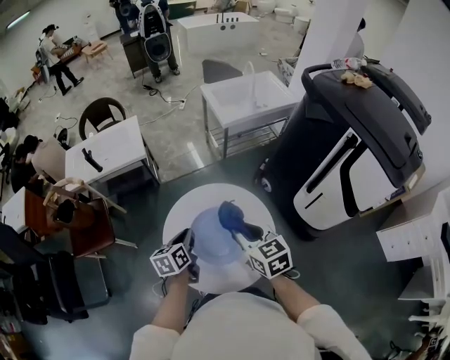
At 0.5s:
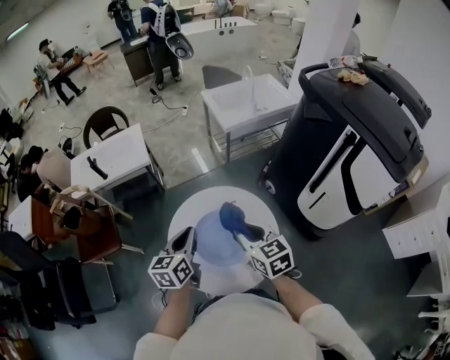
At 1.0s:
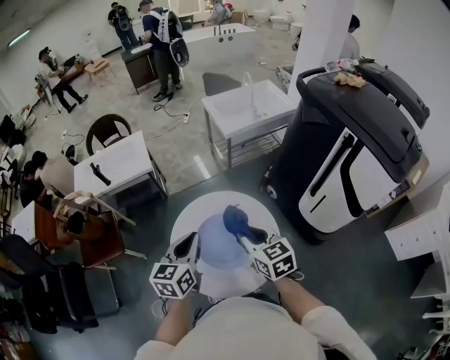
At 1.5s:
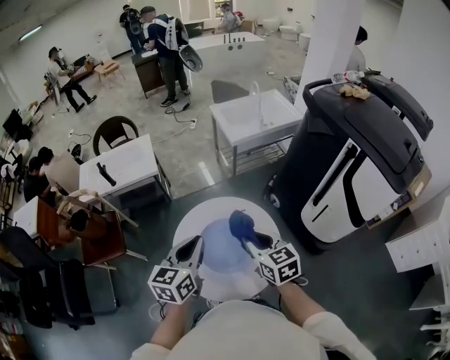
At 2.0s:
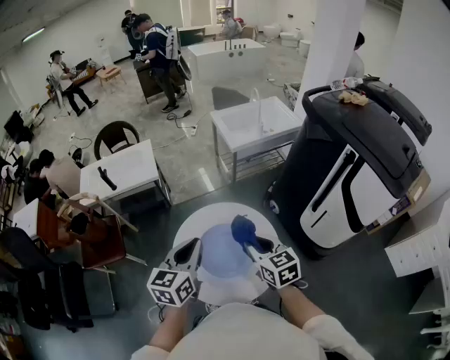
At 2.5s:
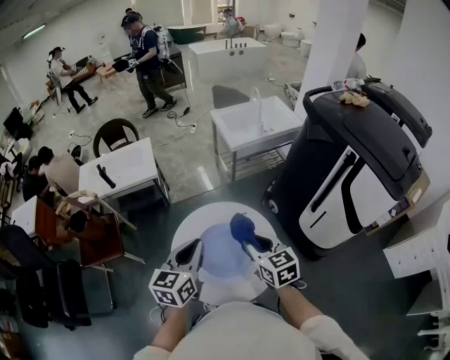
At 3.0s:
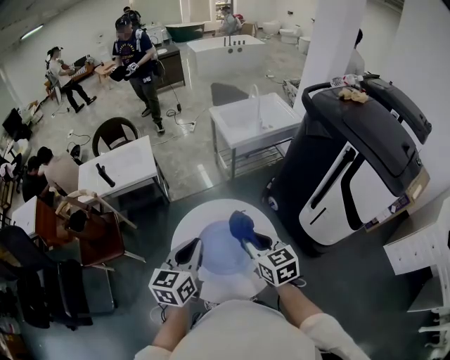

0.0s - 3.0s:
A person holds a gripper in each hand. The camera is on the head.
0.0s - 1.5s: The left gripper heads upward, covering roughly 15 cm, and turns by roughly 30 degrees.
1.5s - 3.0s: The grippers stay close to where they were, moving slightly.

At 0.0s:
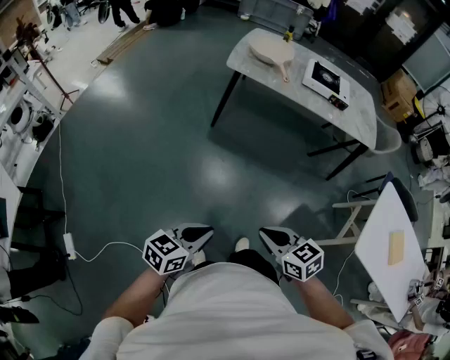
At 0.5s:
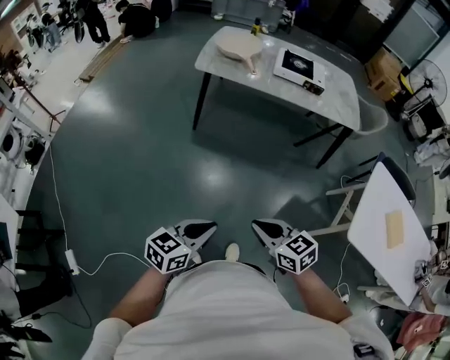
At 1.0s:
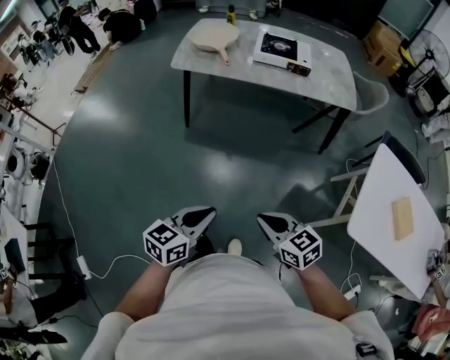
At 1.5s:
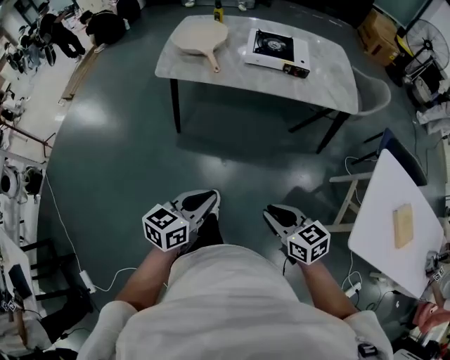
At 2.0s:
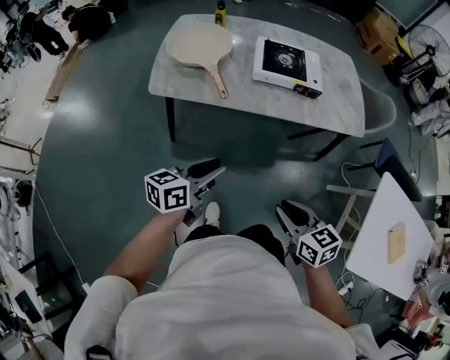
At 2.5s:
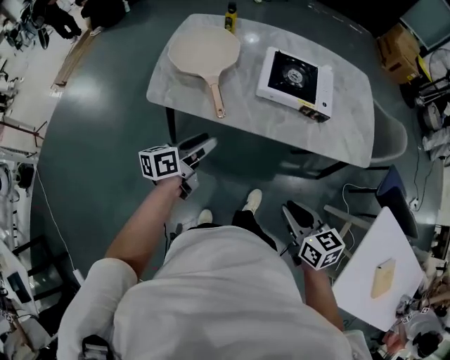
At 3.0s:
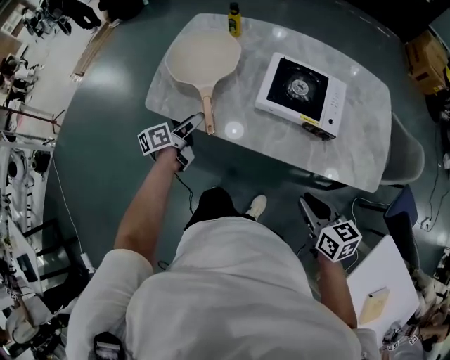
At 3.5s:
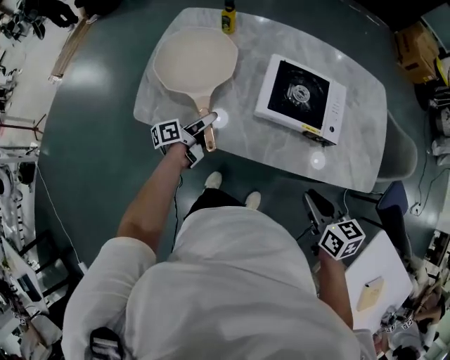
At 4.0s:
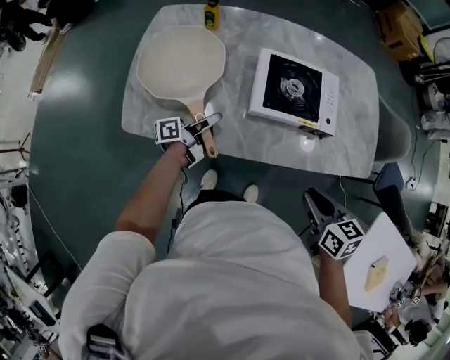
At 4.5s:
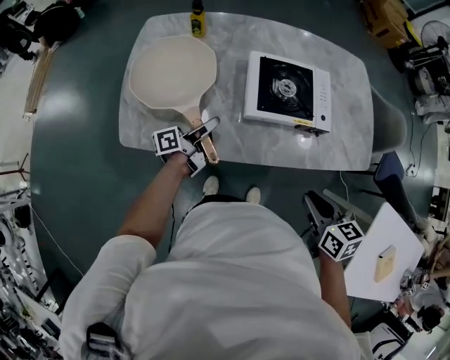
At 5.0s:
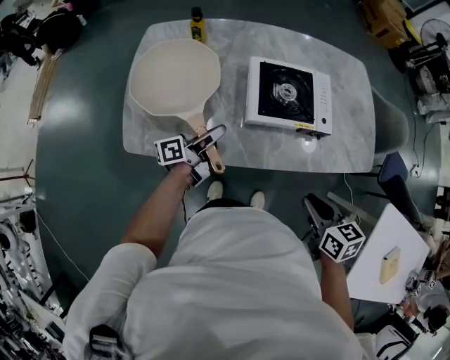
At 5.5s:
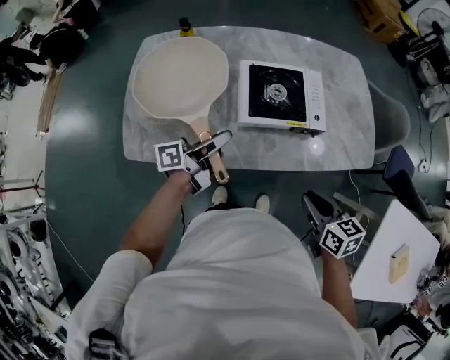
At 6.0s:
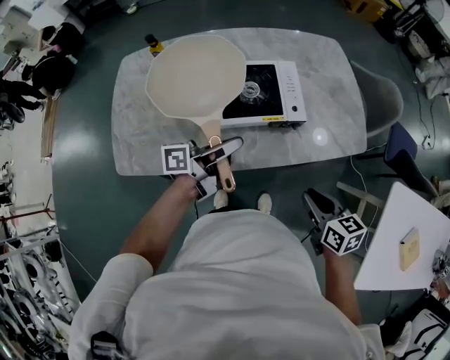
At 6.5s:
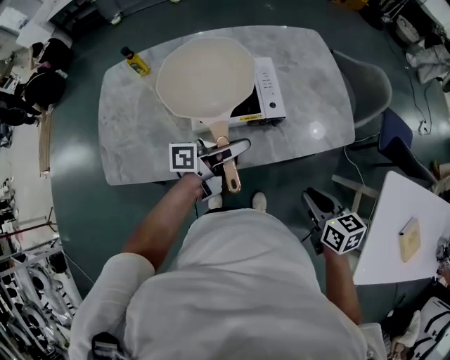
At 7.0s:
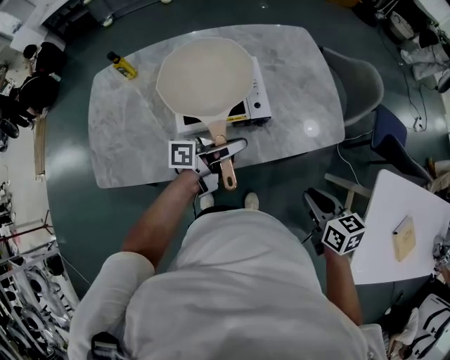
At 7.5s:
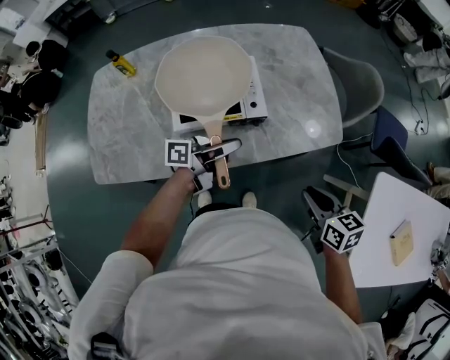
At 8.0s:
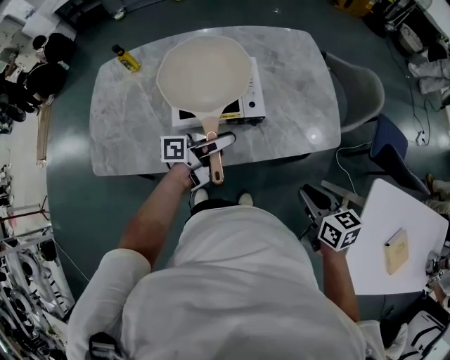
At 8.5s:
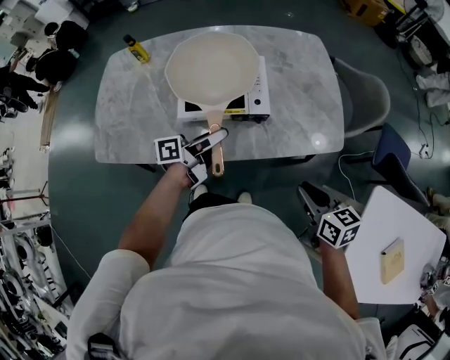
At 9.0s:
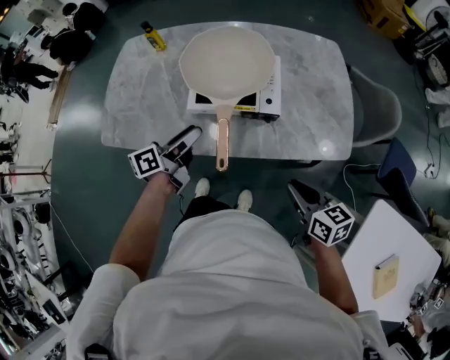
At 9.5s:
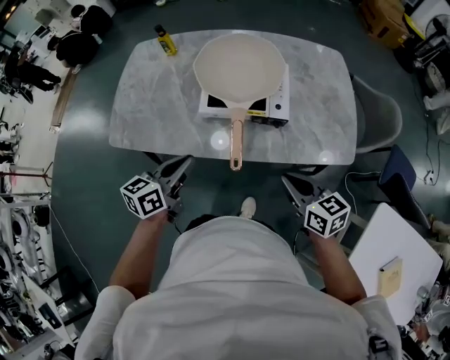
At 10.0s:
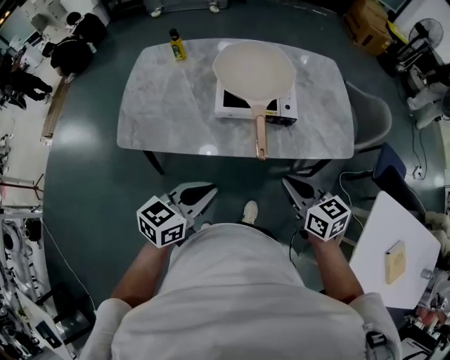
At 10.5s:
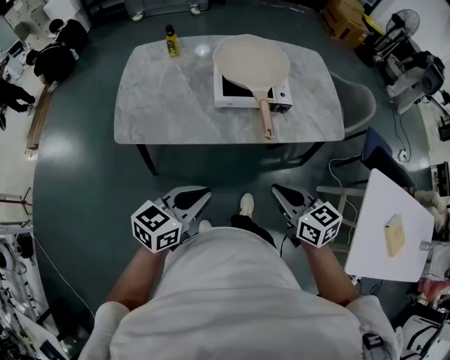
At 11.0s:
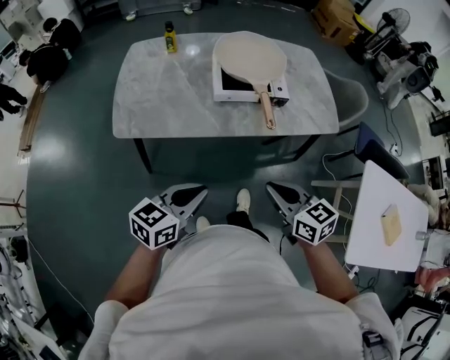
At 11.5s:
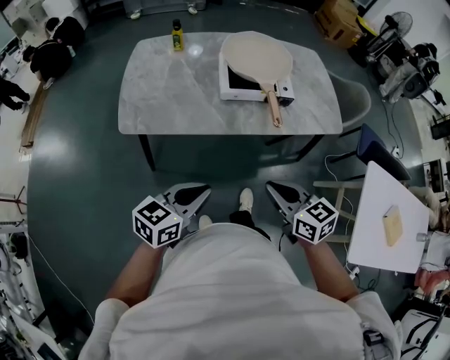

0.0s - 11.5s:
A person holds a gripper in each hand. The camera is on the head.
0.0s - 2.0s: The pair of grippers is taken forward, some 50 cm. The right gripper rotates about 30 degrees; the left gripper opens up.
2.0s - 4.0s: Both grippers travel together forward, roughly 35 cm. The left gripper turns by about 40 degrees, and opens, then closes again.
4.0s - 6.0s: The left gripper moves to the right and upward, about 25 cm, and swivels roughly 20 degrees. The right gripper shifts approximately 10 cm to the right.
6.0s - 7.5s: The two grippers go about 15 cm to the right.
7.5s - 9.5s: The right gripper ends up approximately 10 cm from where it was, and rotates some 30 degrees; the left gripper shifts by some 20 cm, turns by some 50 degrees, and opens, then closes once more.
9.5s - 11.5s: The right gripper heads backward and to the left, covering about 30 cm. The left gripper heads backward, covering roughly 25 cm, and changes its angle by roughly 20 degrees.

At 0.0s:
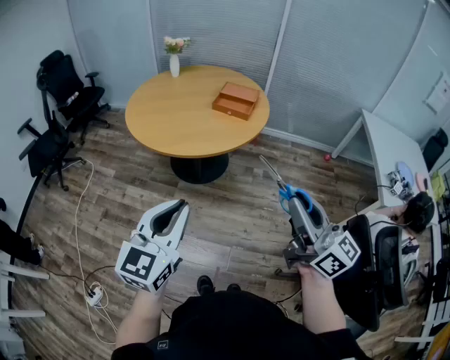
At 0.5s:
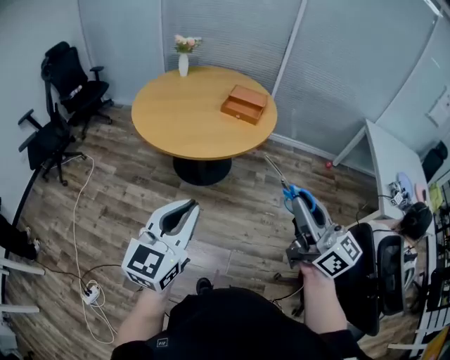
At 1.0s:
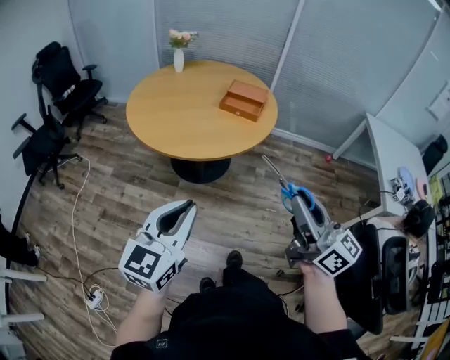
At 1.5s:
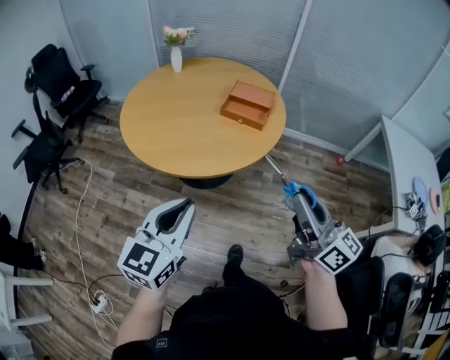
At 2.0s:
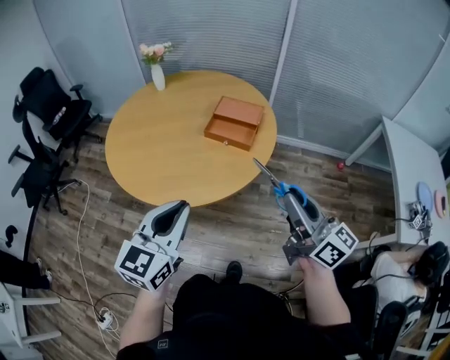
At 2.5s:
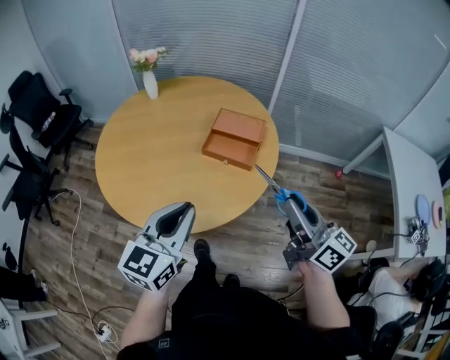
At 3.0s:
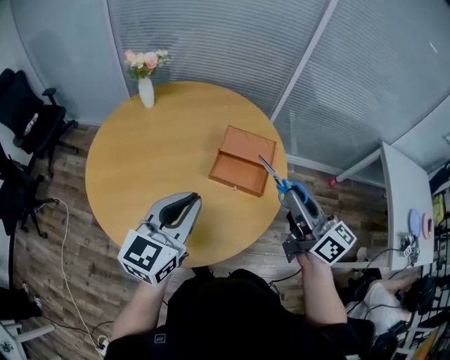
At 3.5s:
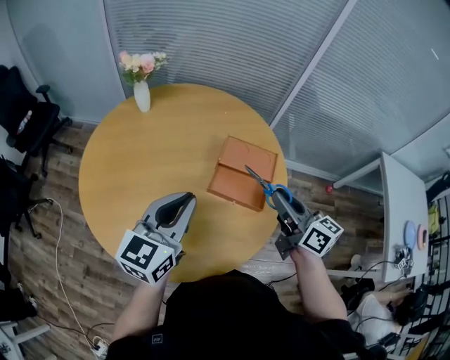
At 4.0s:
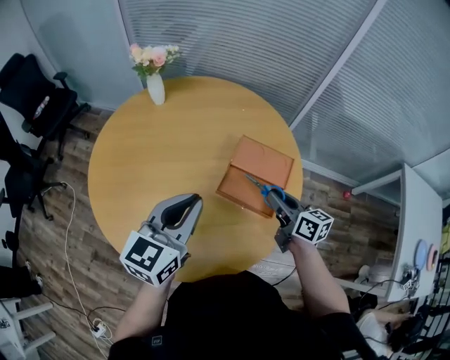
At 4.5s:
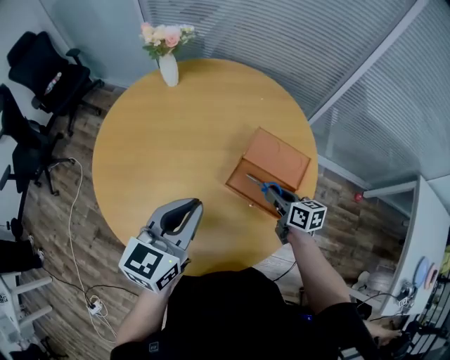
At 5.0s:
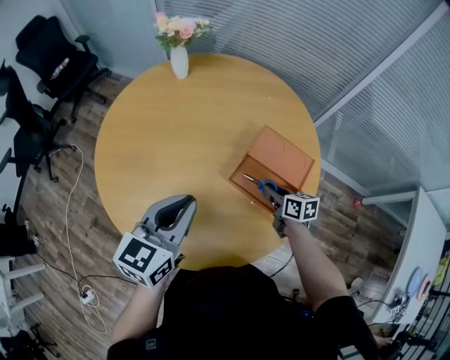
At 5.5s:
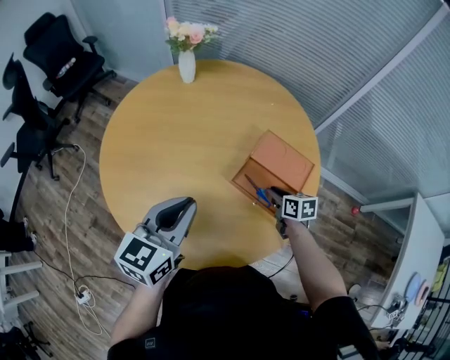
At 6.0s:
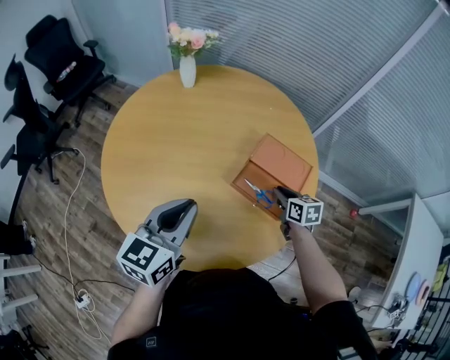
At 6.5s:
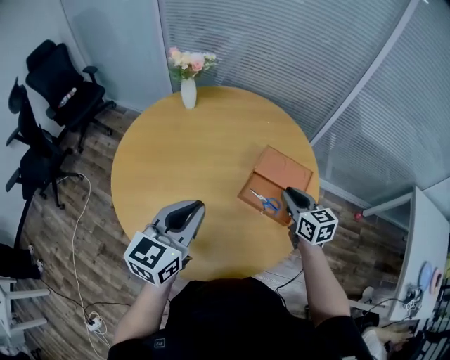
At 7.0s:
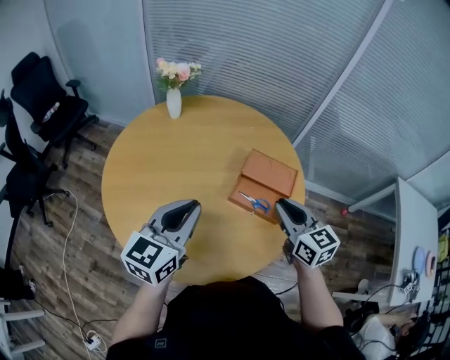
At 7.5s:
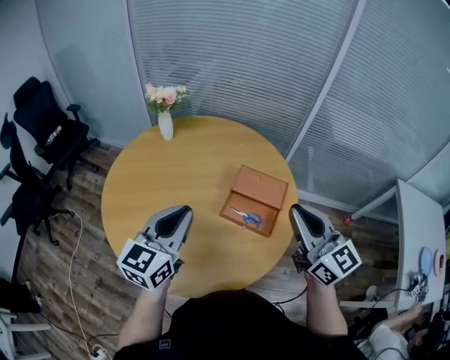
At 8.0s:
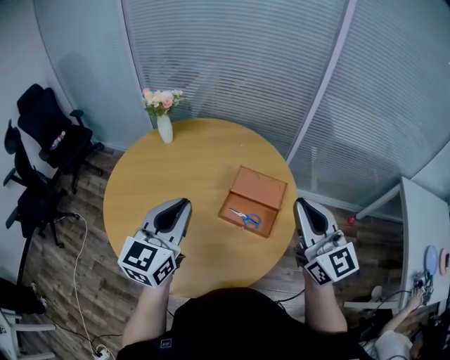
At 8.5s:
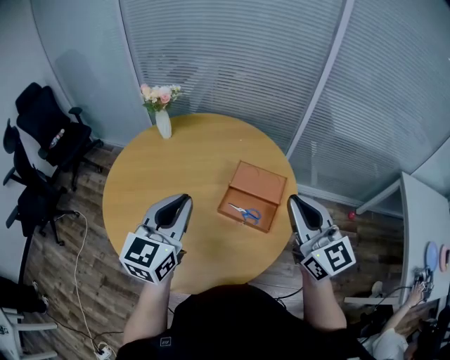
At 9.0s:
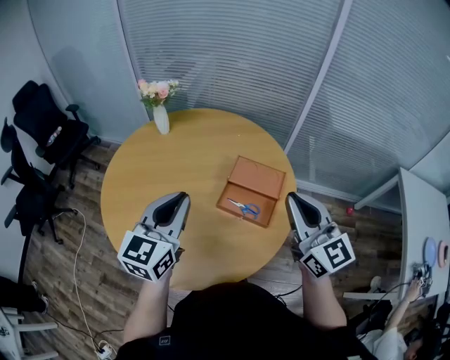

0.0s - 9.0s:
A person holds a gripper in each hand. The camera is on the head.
0.0s - 2.0s: Both grippers move forward, some 30 cm.
2.0s - 4.5s: The right gripper moves forward and downward, about 50 cm, and angles its fingers downward, by about 40 degrees. Meanwhile the left gripper travels forward by about 35 cm.
4.5s - 7.0s: The left gripper moves to the left, roughly 5 cm. Meanwhile the right gripper goes about 20 cm upward and backward, and rotates roughly 30 degrees.
7.0s - 9.0s: The left gripper changes place by some 5 cm. The right gripper travels upward and to the right by some 15 cm, and turns by about 20 degrees.

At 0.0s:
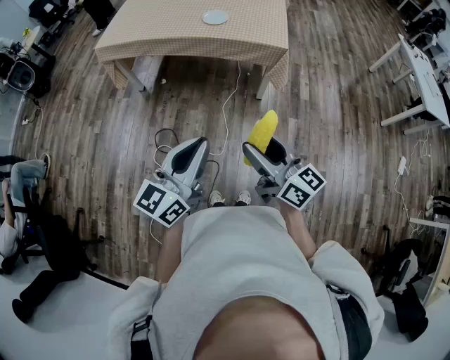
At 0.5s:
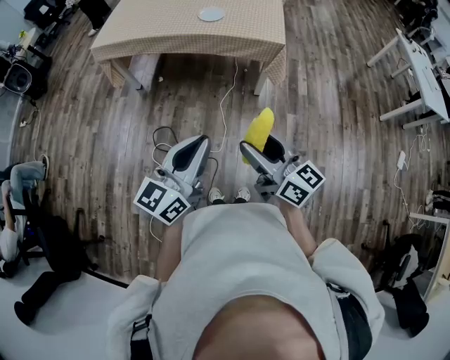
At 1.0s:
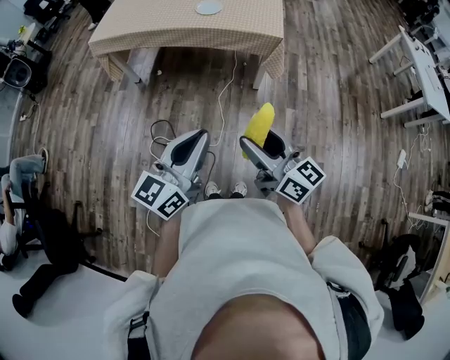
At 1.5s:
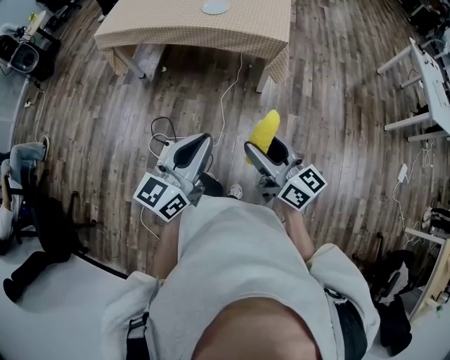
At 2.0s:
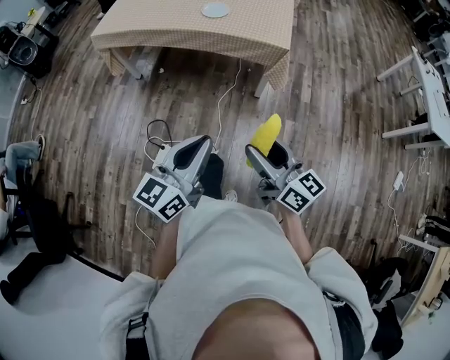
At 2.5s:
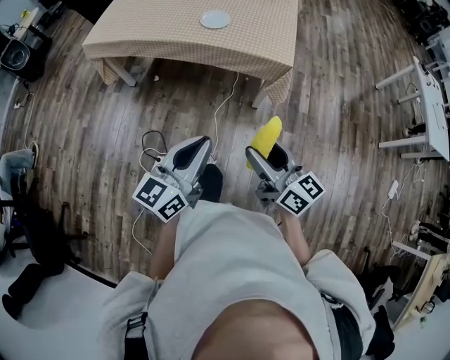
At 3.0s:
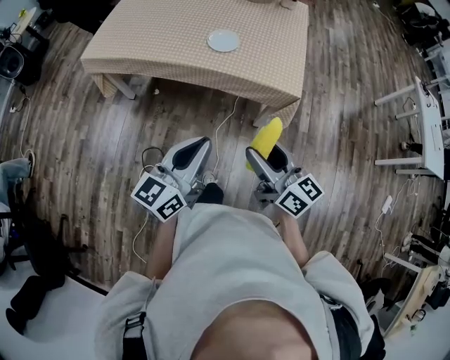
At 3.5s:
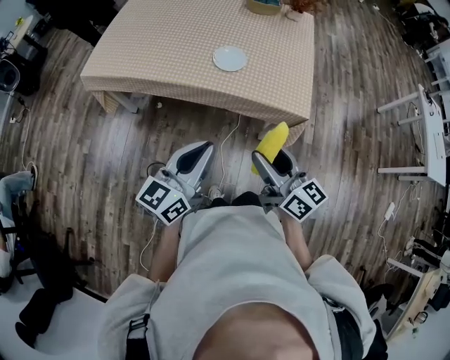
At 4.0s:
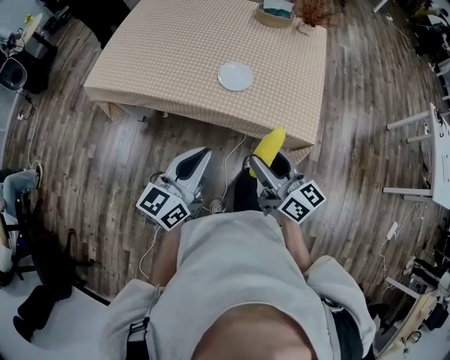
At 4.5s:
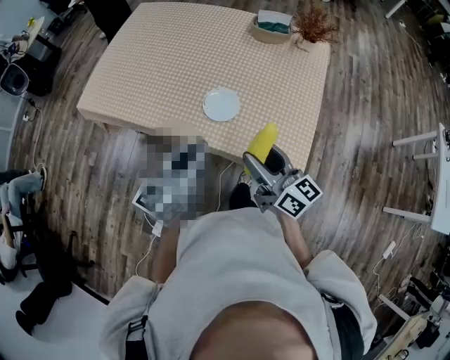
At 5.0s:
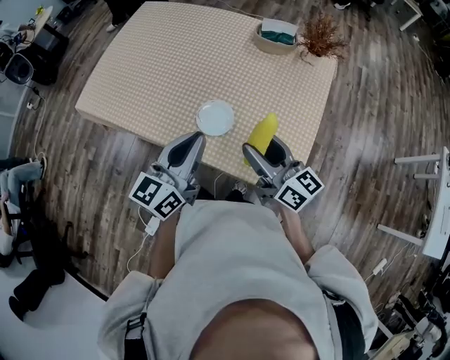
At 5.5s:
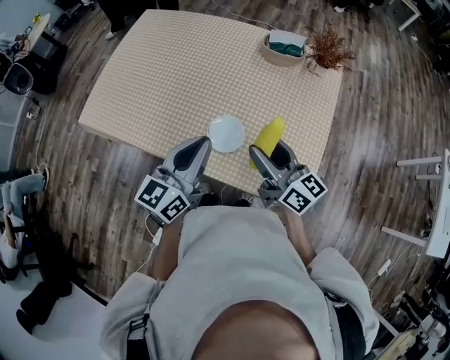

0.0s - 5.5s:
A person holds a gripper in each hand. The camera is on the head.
0.0s - 2.0s: Both grippers travel together to the right, roughly 5 cm.
2.0s - 3.5s: Both grippers travel together forward, roughly 35 cm.
3.5s - 5.5s: The grippers both shift forward by approximately 35 cm.
